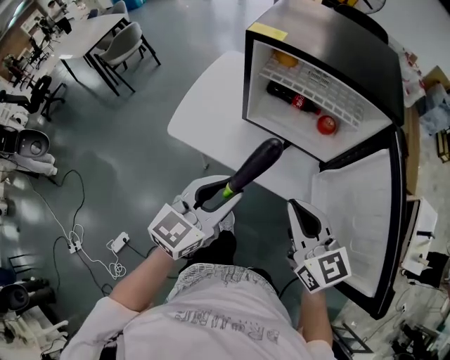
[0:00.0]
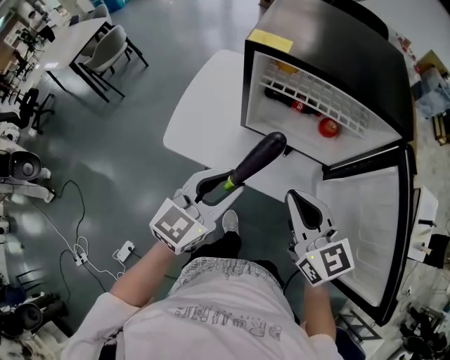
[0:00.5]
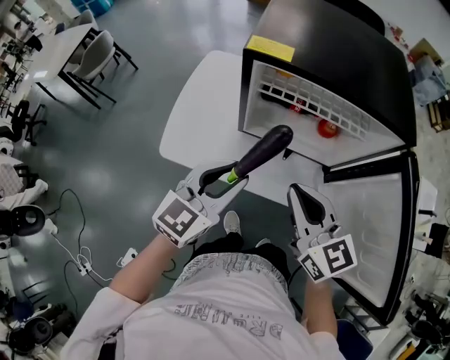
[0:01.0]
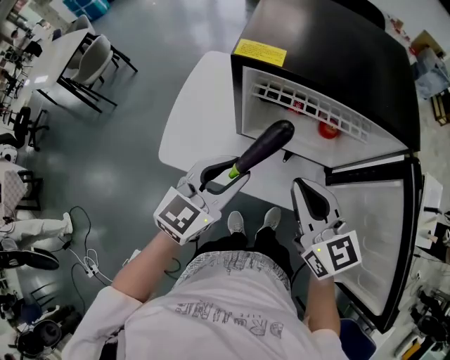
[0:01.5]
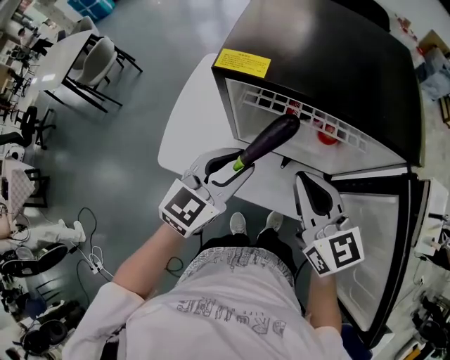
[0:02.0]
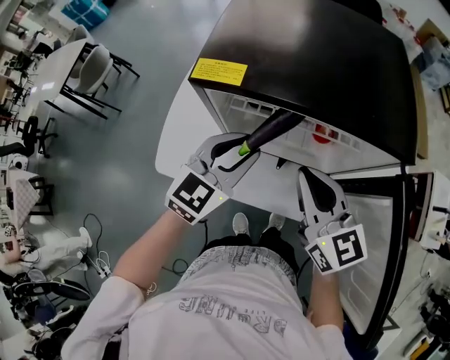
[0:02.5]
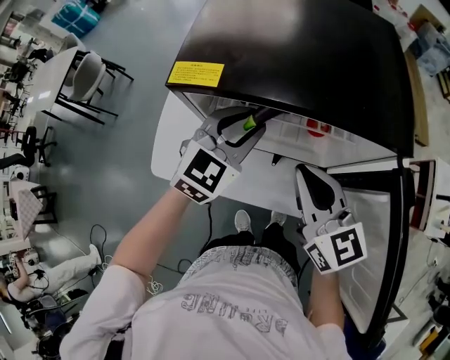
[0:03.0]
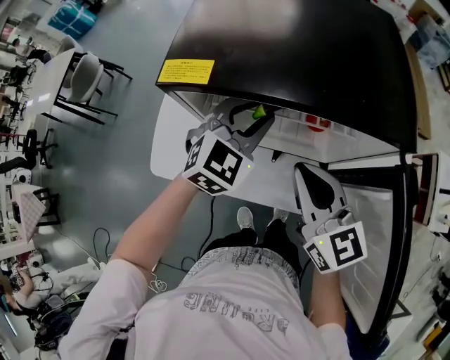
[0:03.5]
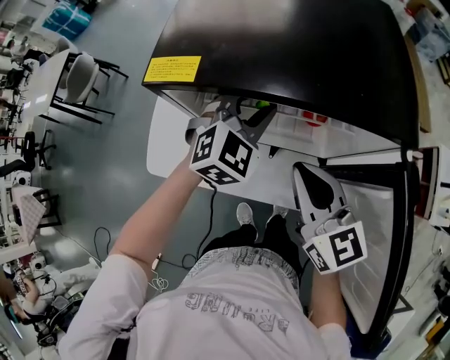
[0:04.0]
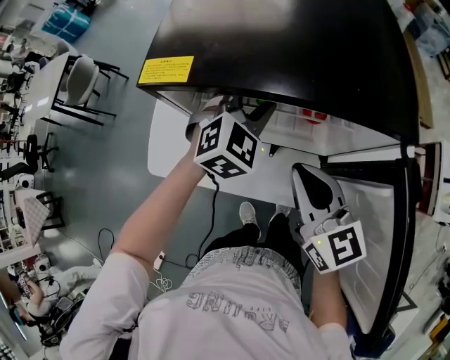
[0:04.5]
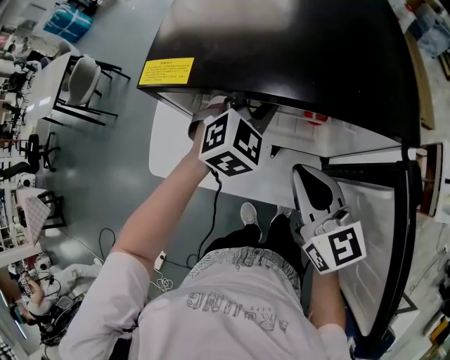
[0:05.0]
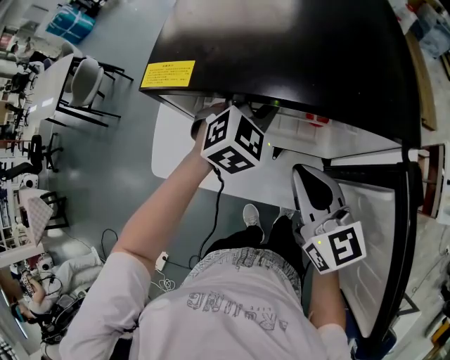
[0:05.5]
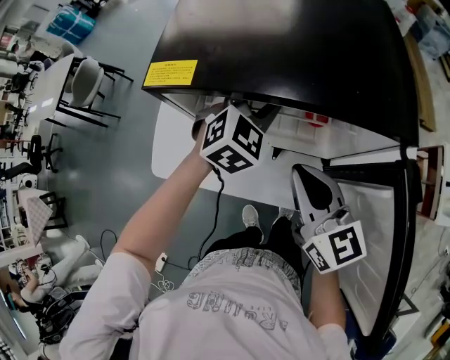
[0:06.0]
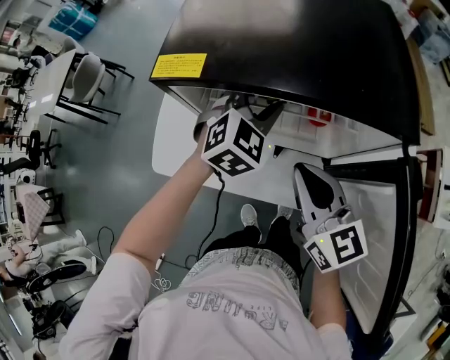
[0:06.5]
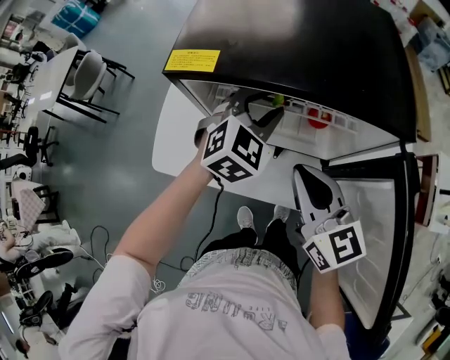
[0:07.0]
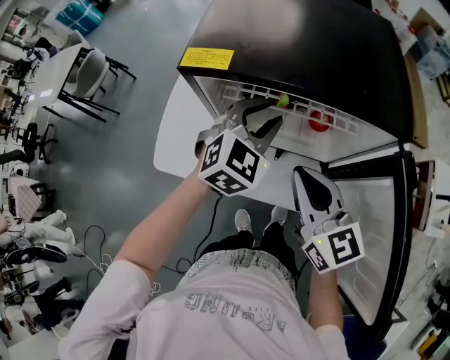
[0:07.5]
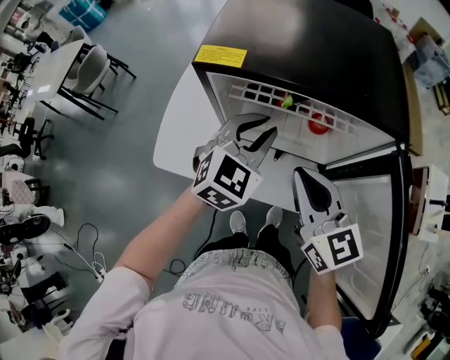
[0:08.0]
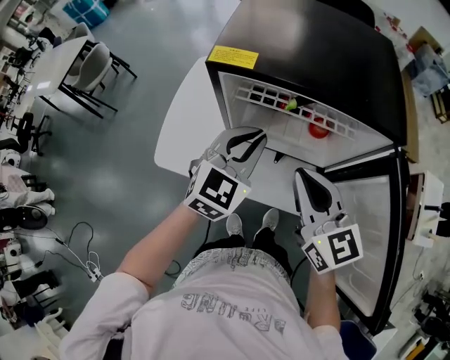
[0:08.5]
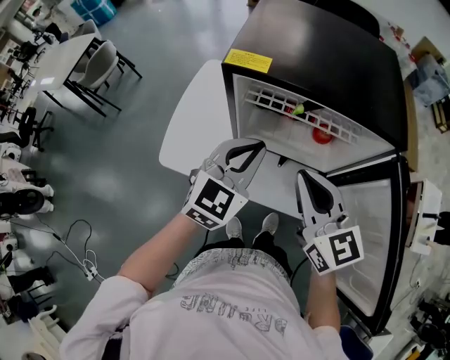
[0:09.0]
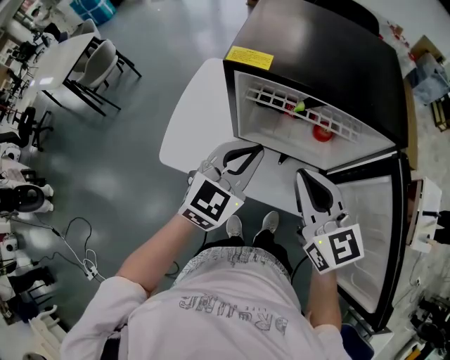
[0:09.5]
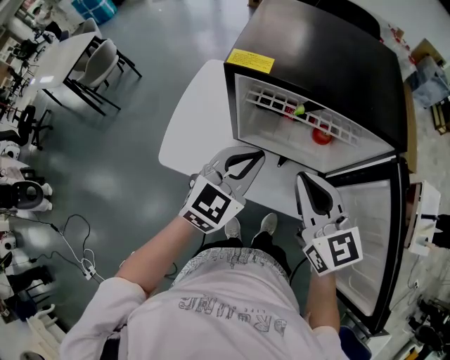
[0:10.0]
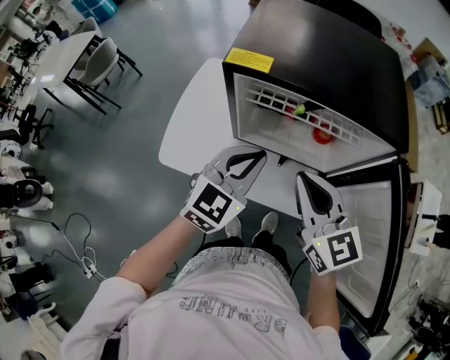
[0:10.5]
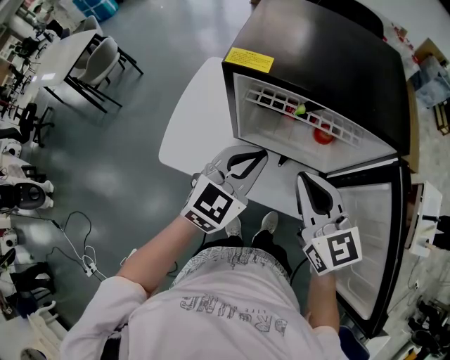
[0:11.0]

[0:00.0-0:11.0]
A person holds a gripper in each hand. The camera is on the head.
0:00.0 to 0:02.0: The two grippers go some 20 cm forward.
0:02.0 to 0:03.5: The left gripper is displaced forward and to the right by roughly 15 cm, and rotates roughly 30 degrees.
0:03.5 to 0:05.5: The left gripper shifts by roughly 5 cm.
0:05.5 to 0:07.5: The left gripper shifts approximately 5 cm backward.
0:07.5 to 0:09.0: The left gripper is displaced backward and to the left by approximately 10 cm, and closes its fingers. The right gripper ends up some 5 cm from where it was.
0:09.0 to 0:11.0: The grippers move only a little.

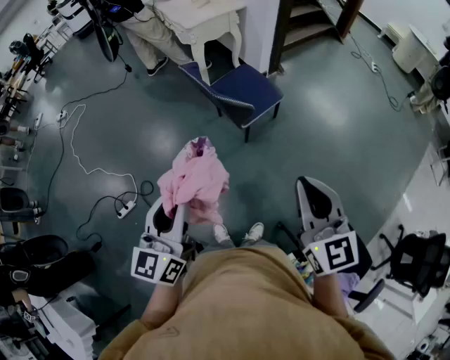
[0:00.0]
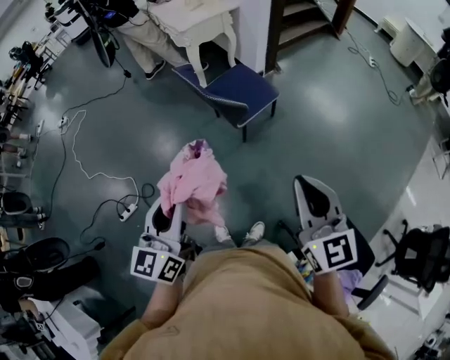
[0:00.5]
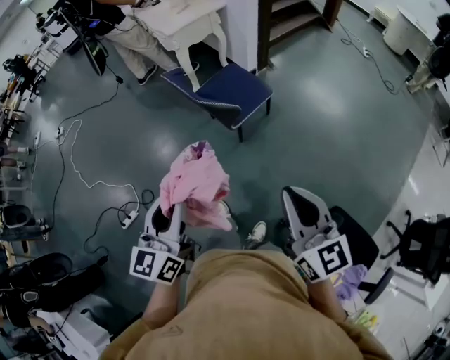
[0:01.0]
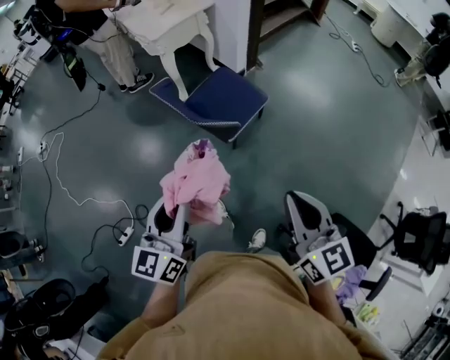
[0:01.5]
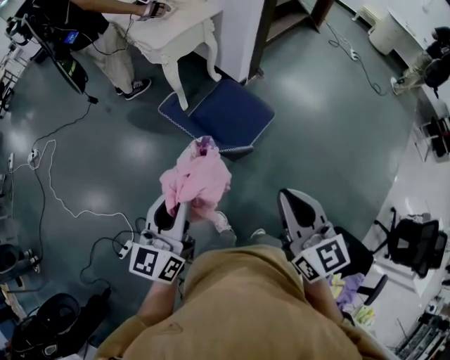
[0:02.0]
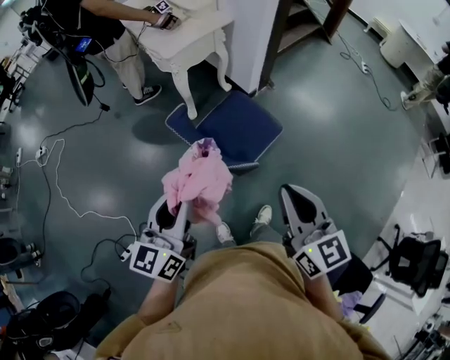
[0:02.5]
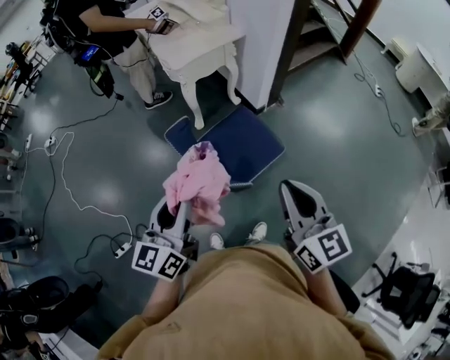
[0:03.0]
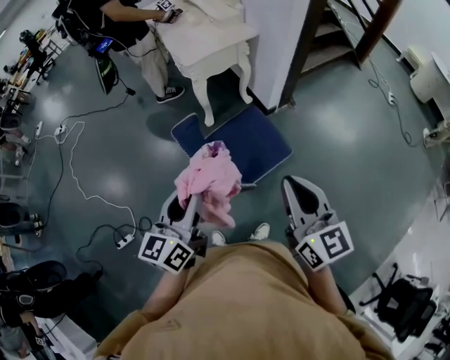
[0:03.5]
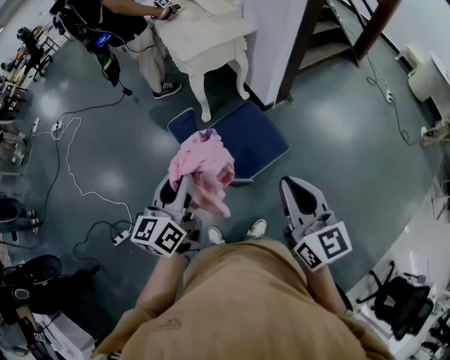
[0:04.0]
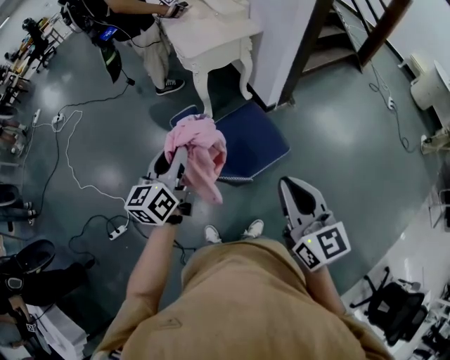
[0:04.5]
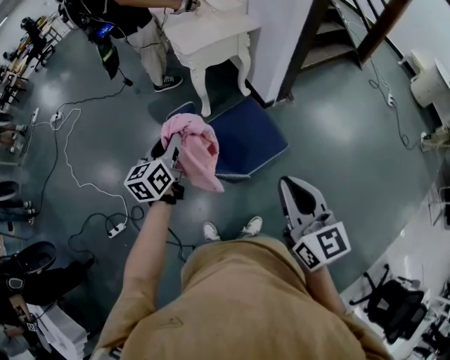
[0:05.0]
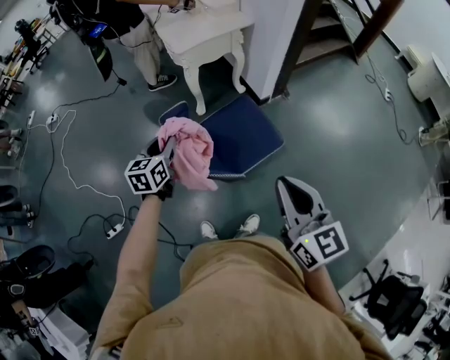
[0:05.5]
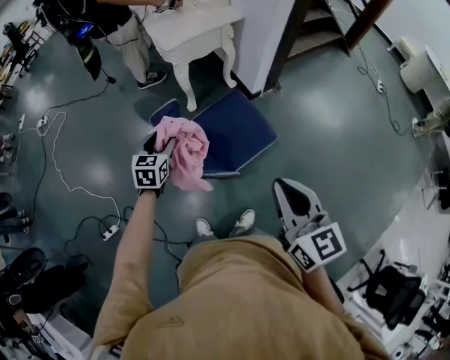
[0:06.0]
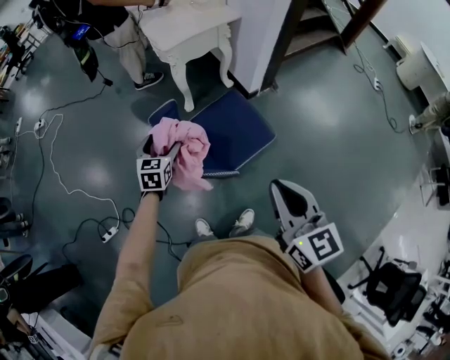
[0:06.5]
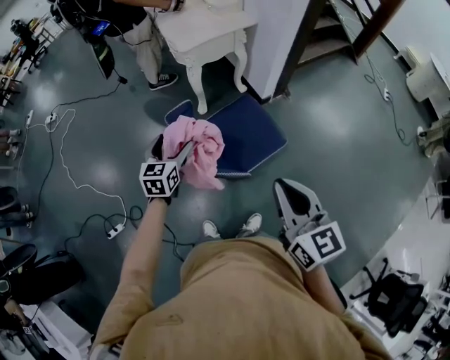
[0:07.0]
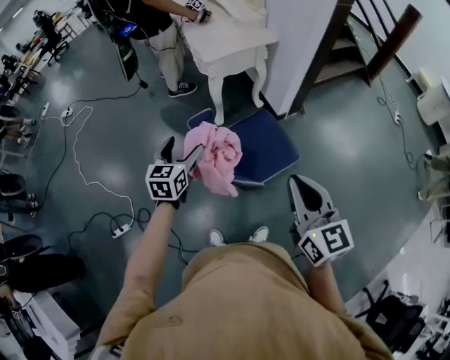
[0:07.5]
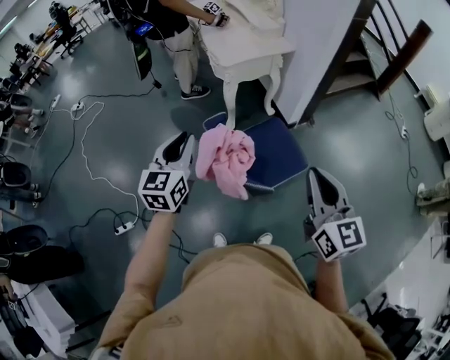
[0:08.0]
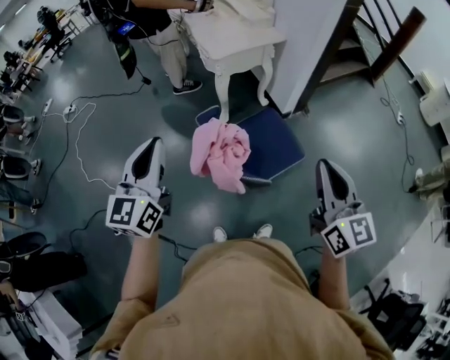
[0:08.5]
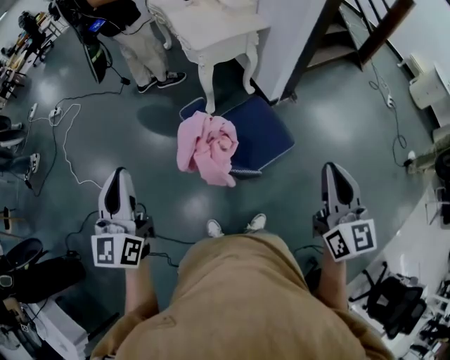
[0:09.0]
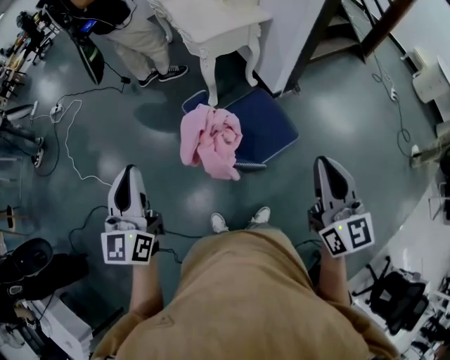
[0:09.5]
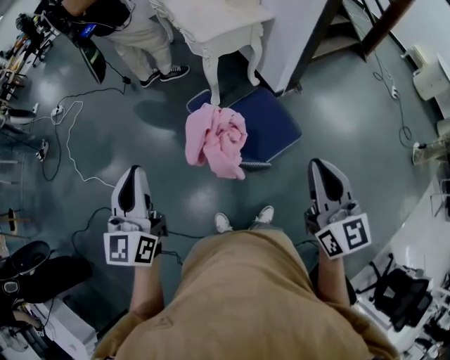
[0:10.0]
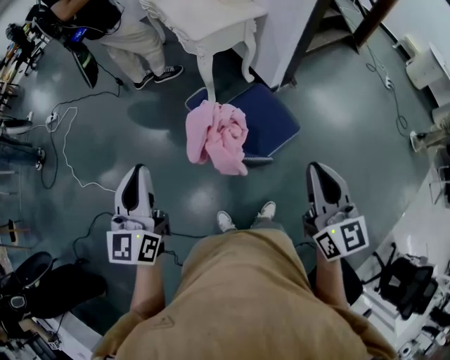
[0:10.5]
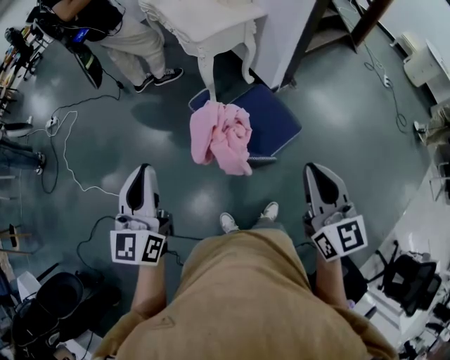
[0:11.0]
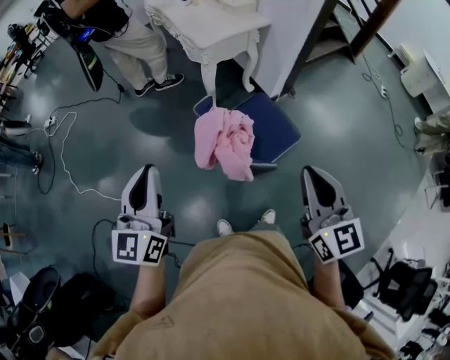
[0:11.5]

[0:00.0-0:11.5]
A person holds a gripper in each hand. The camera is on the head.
0:00.0 to 0:02.0: The grippers both shift forward by approximately 30 cm.
0:02.0 to 0:04.0: Both grippers move forward and to the right, about 15 cm.
0:04.0 to 0:06.0: The left gripper moves downward and forward, about 25 cm, and rotates about 40 degrees.
0:06.0 to 0:07.5: The right gripper moves approximately 5 cm, while the left gripper moves upward, roughly 10 cm, and opens.
0:07.5 to 0:09.5: The left gripper shifts roughly 20 cm upward, backward and to the left, turns by approximately 30 degrees, and closes.
0:09.5 to 0:11.5: The right gripper travels to the left by some 10 cm.

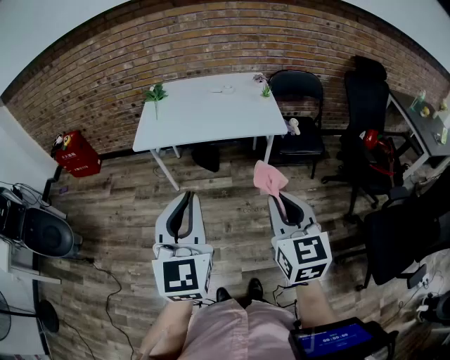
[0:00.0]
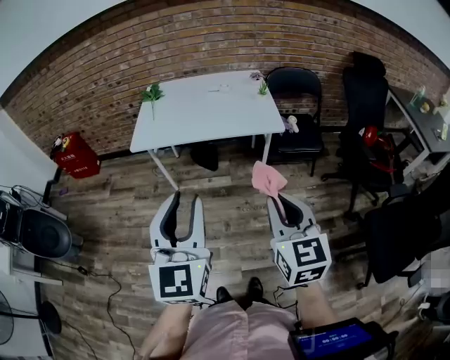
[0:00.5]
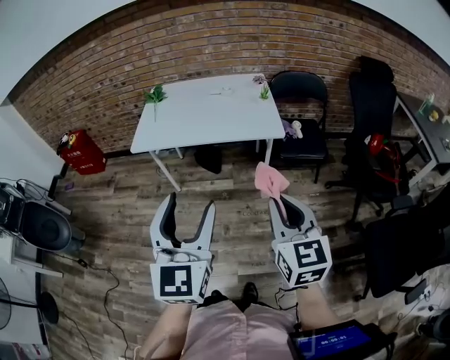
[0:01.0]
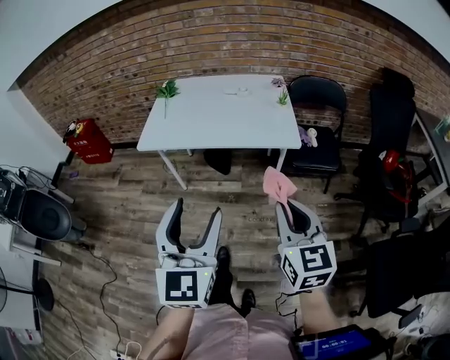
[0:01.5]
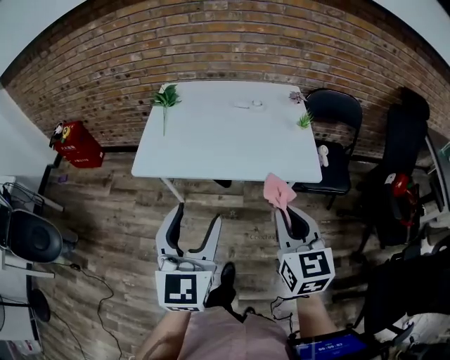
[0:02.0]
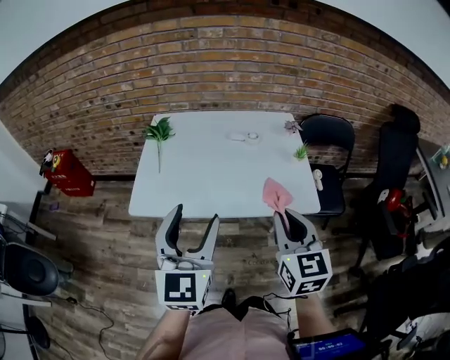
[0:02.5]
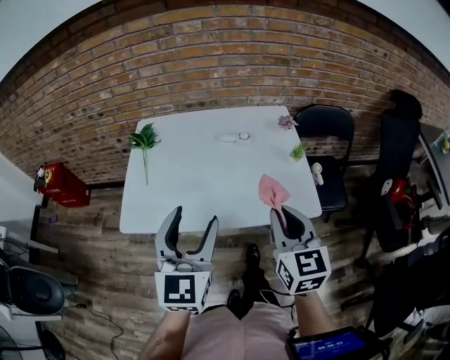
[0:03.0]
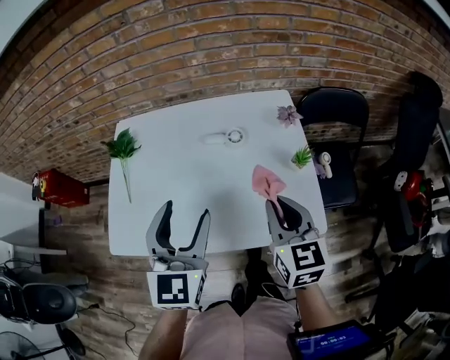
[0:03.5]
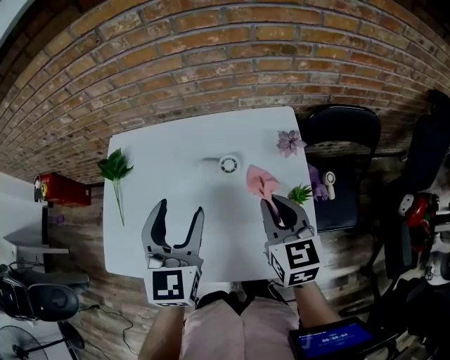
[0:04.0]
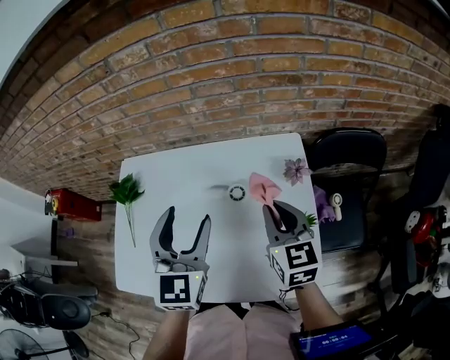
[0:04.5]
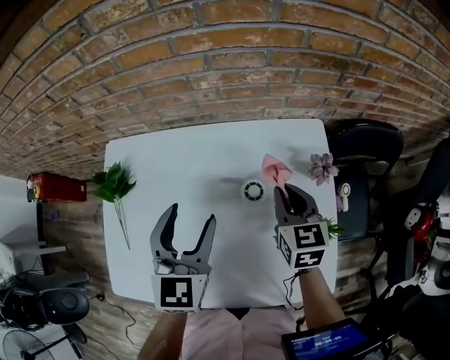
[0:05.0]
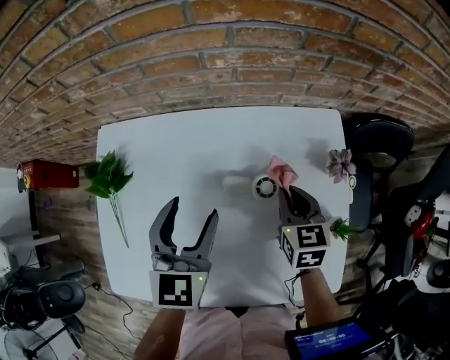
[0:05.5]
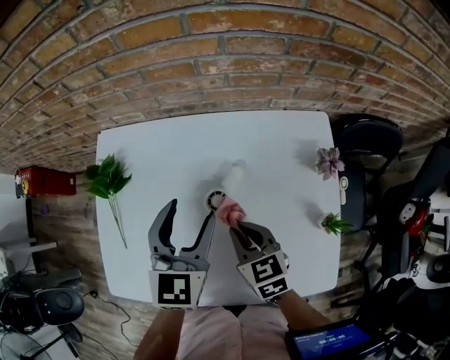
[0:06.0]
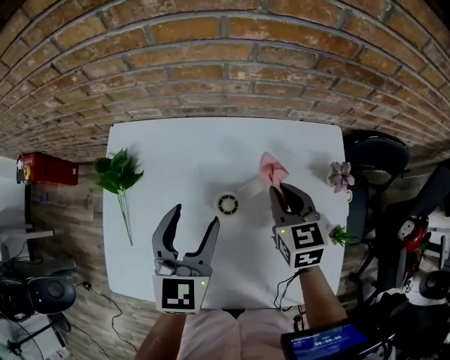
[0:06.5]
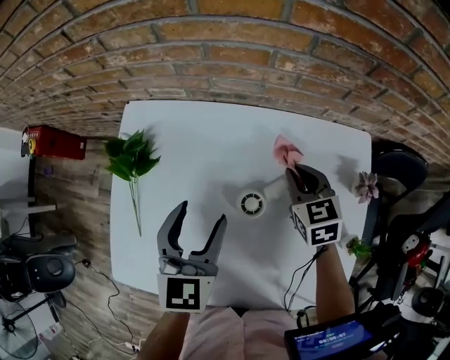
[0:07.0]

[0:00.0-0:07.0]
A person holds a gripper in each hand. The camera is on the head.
0:00.0 to 0:02.0: Both grippers travel together forward, roughly 25 cm. The left gripper opens its fingers.
0:02.0 to 0:03.5: Both grippers travel together forward, approximately 30 cm.
0:03.5 to 0:05.0: The two grippers go approximately 25 cm forward.
0:05.0 to 0:07.0: The left gripper heads to the left and downward, covering about 10 cm. The right gripper heads to the left, forward and downward, covering some 15 cm, and turns by some 20 degrees.
